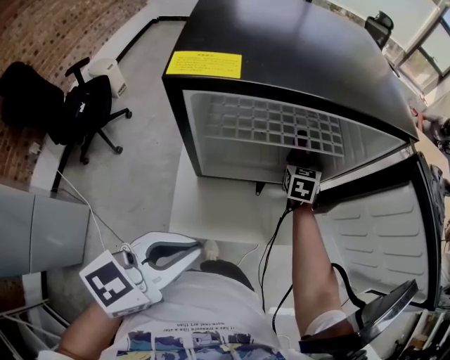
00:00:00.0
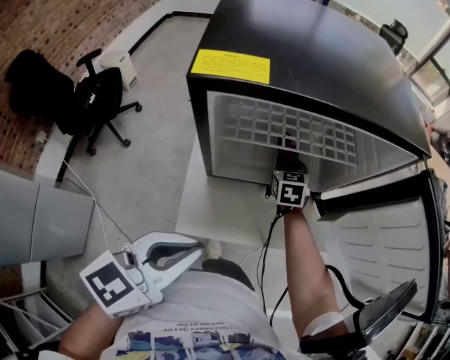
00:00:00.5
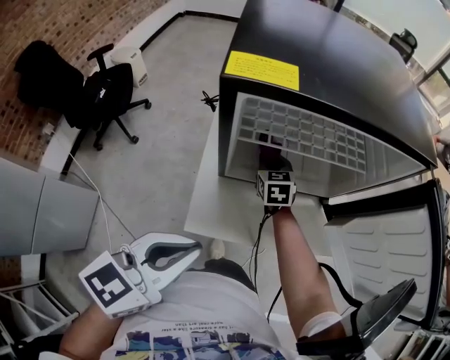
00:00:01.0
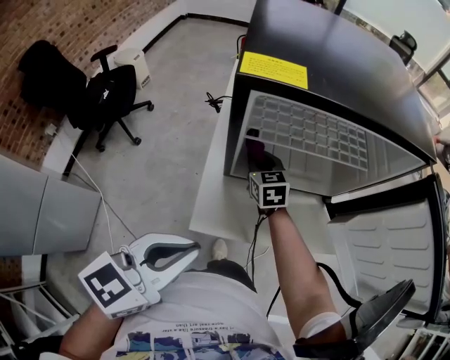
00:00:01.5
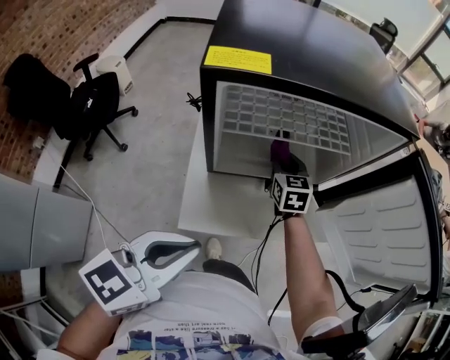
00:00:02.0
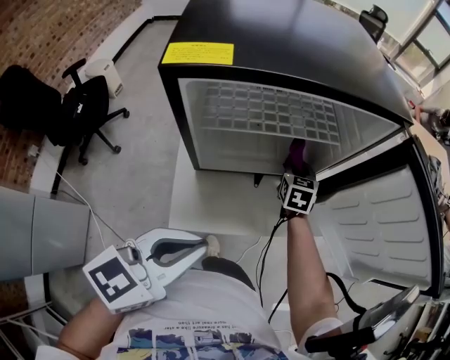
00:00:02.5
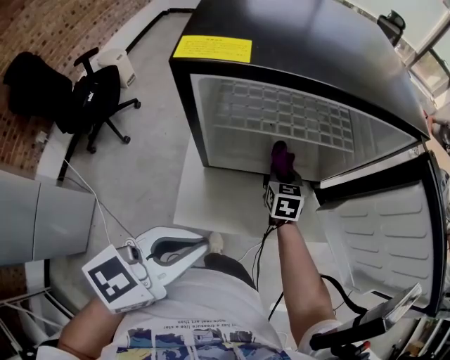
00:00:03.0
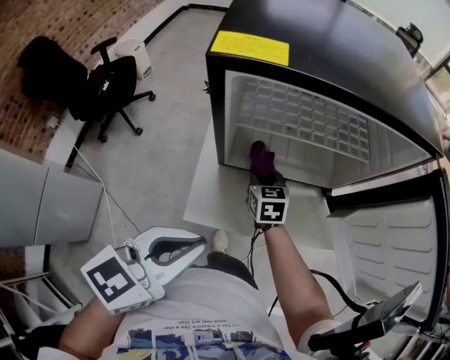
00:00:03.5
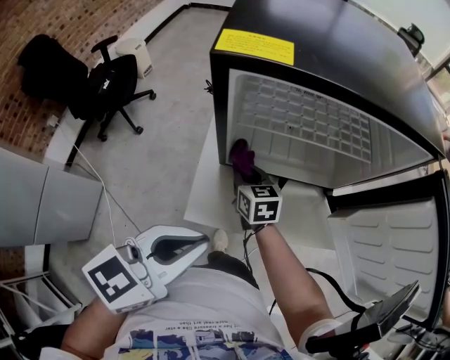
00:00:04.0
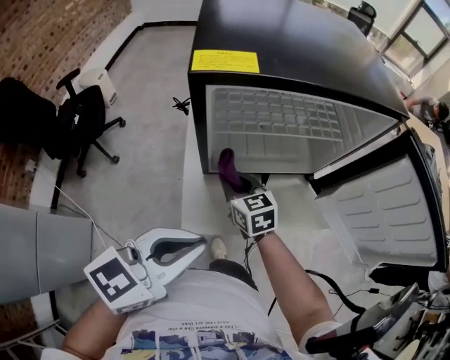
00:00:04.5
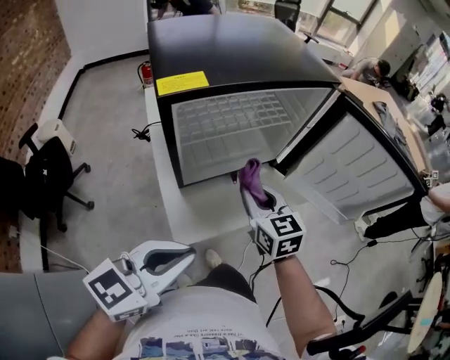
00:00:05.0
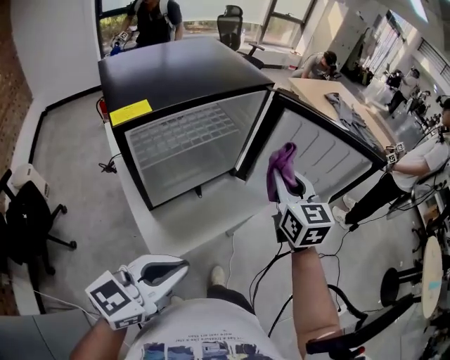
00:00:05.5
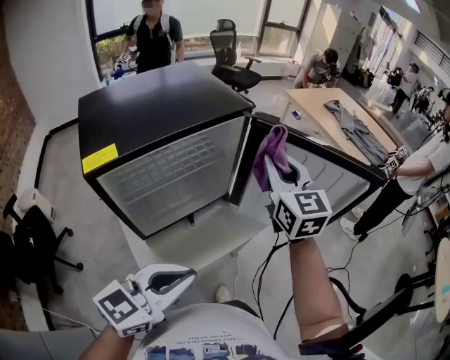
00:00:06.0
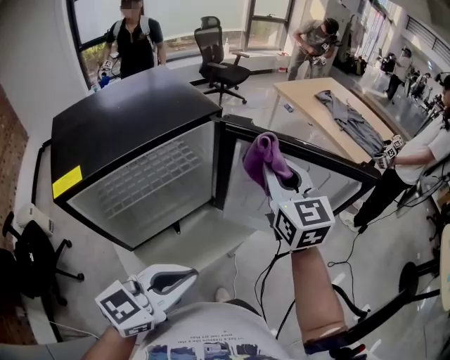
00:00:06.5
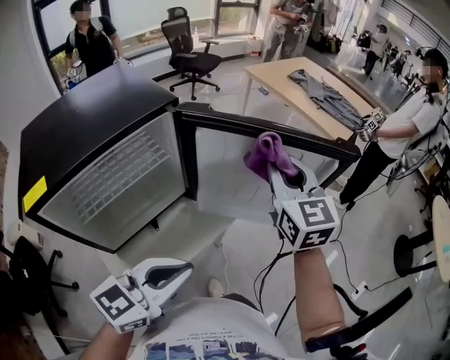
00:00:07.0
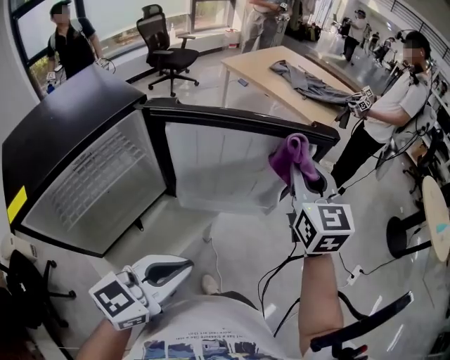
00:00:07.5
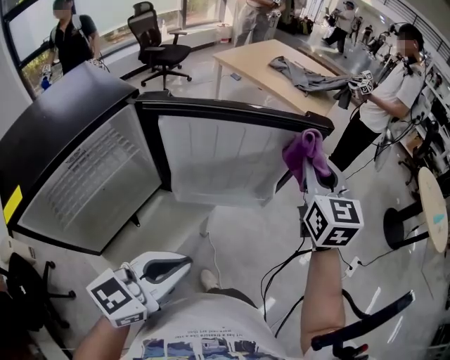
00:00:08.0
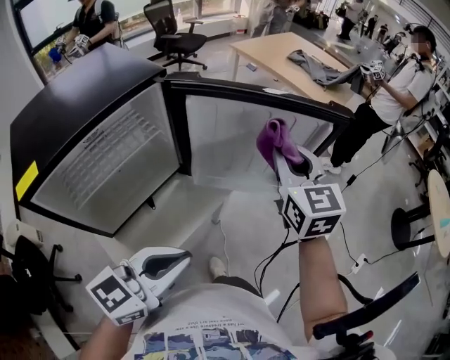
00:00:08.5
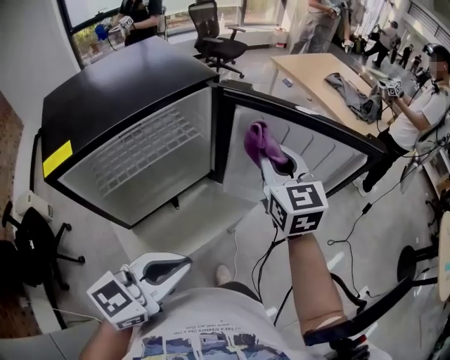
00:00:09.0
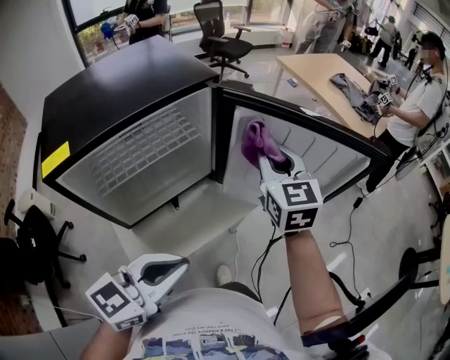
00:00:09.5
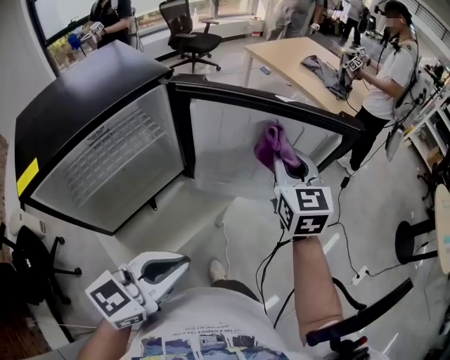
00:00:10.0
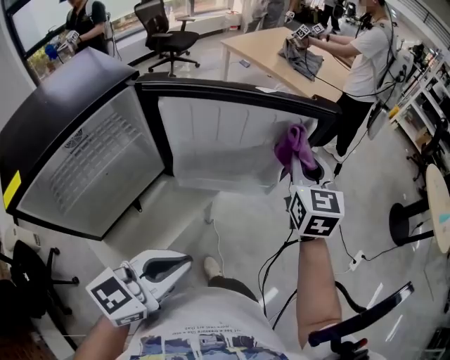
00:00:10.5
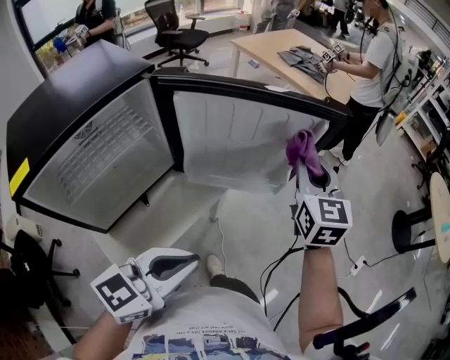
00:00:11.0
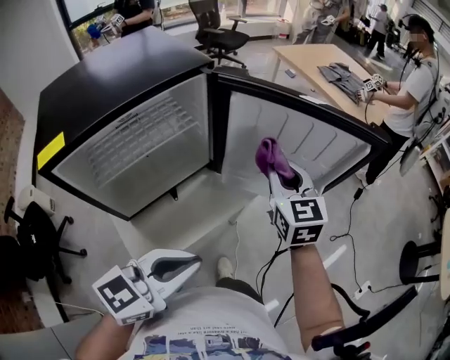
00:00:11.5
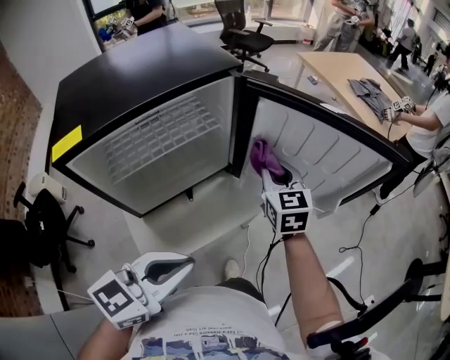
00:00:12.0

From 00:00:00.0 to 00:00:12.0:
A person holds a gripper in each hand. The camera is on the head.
From 00:00:00.0 to 00:00:02.0: The right gripper heads to the left and backward, covering approximately 10 cm.
From 00:00:02.0 to 00:00:04.0: The right gripper moves about 15 cm, and swivels about 20 degrees.
From 00:00:04.0 to 00:00:06.0: The right gripper ends up approximately 50 cm from where it was, and swivels some 60 degrees, while the left gripper ends up some 10 cm from where it was, and changes its angle by about 40 degrees.
From 00:00:06.0 to 00:00:08.0: The left gripper ends up roughly 15 cm from where it was, and swivels approximately 20 degrees, while the right gripper moves approximately 30 cm, and swivels roughly 30 degrees.
From 00:00:08.0 to 00:00:10.0: The right gripper is displaced to the left and downward by about 15 cm.
From 00:00:10.0 to 00:00:12.0: The right gripper shifts by approximately 15 cm; the left gripper ends up about 5 cm from where it was.

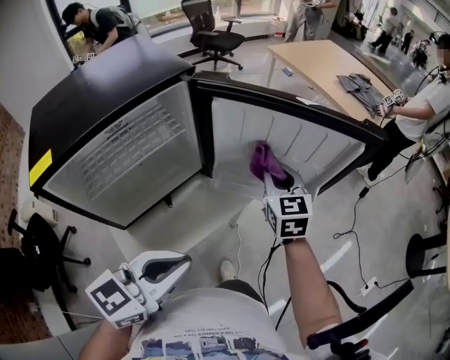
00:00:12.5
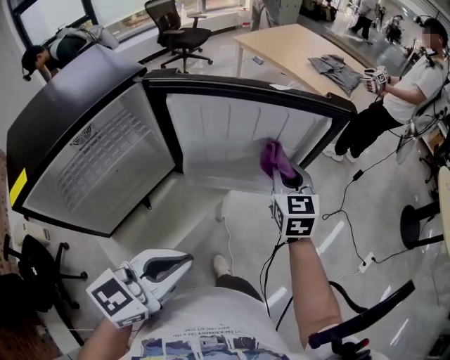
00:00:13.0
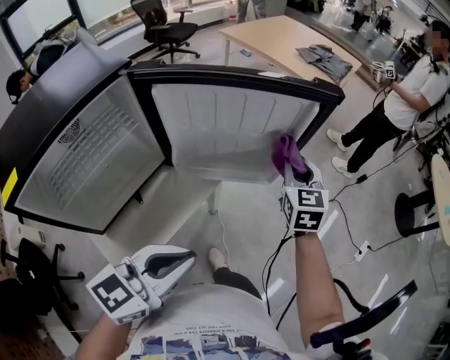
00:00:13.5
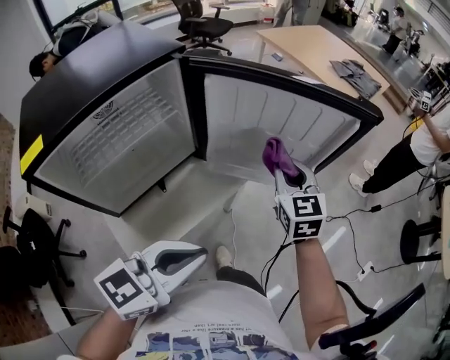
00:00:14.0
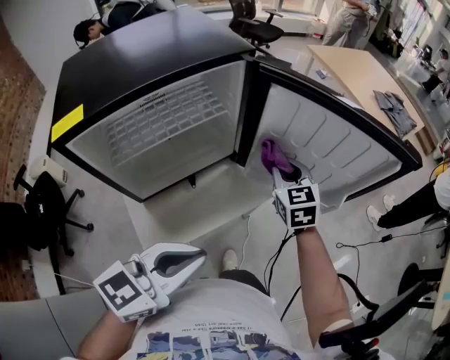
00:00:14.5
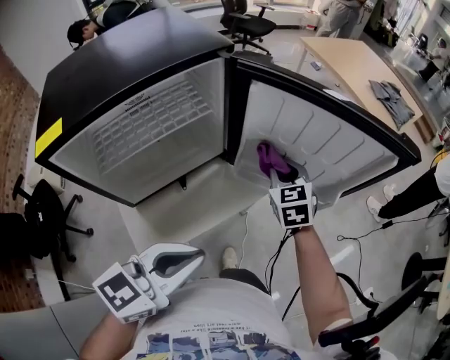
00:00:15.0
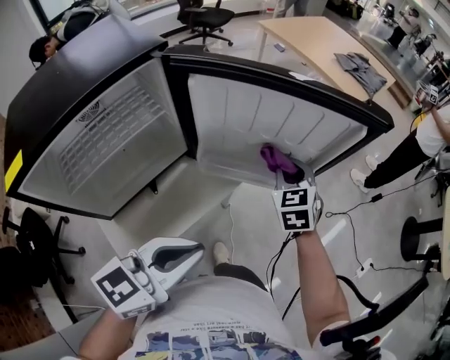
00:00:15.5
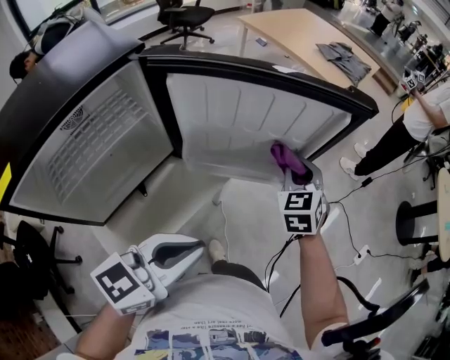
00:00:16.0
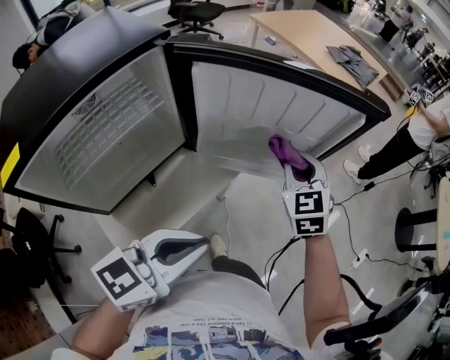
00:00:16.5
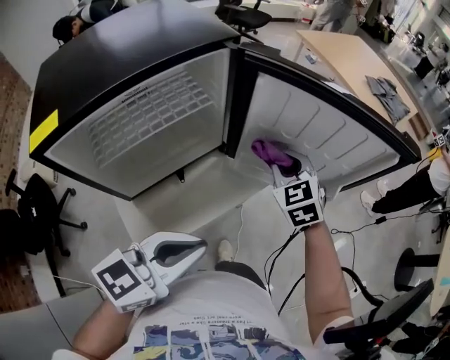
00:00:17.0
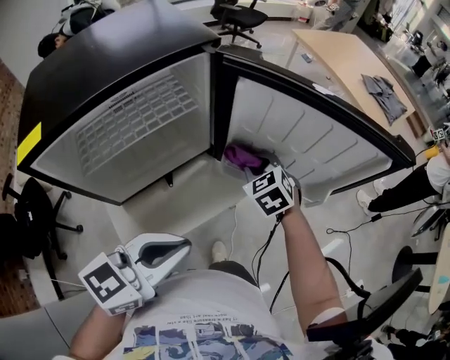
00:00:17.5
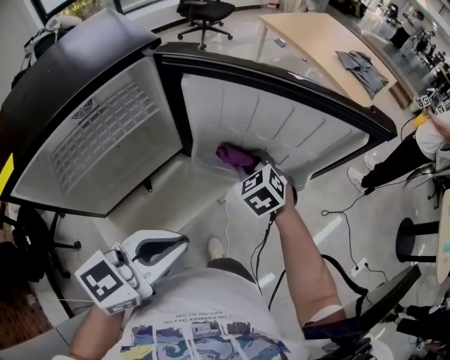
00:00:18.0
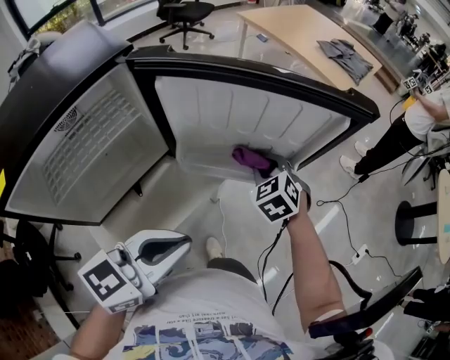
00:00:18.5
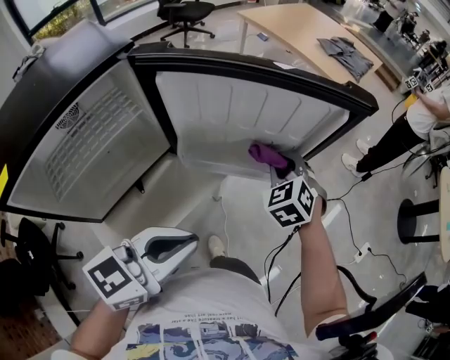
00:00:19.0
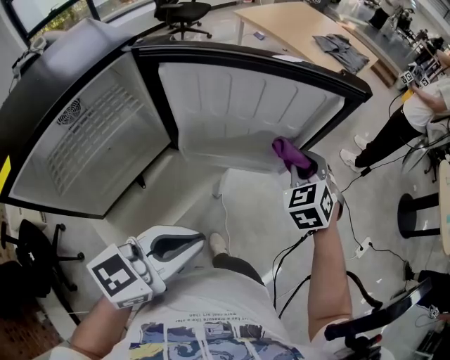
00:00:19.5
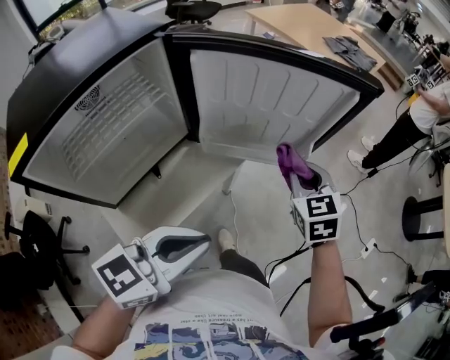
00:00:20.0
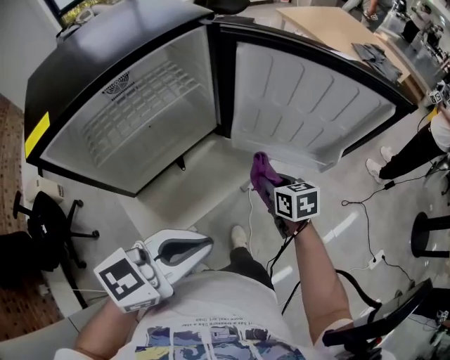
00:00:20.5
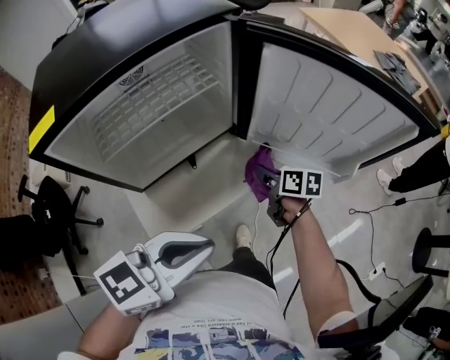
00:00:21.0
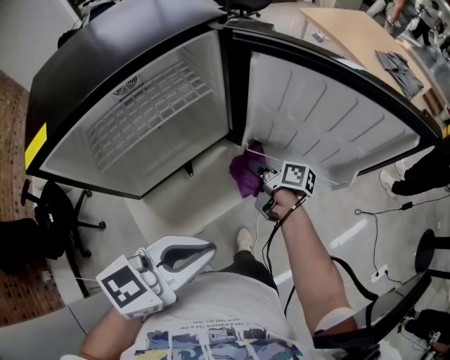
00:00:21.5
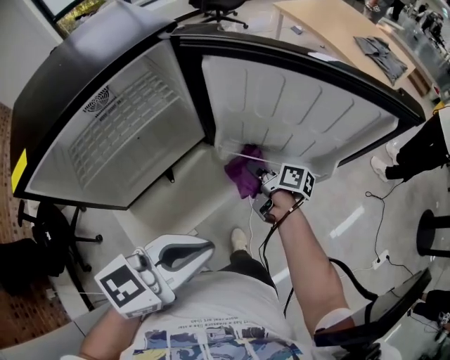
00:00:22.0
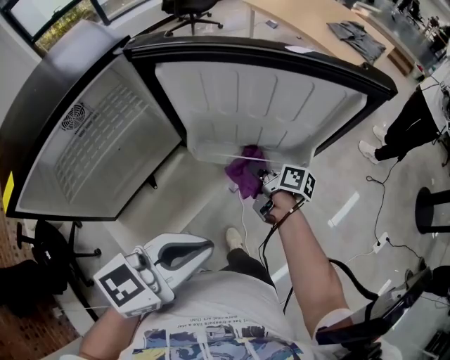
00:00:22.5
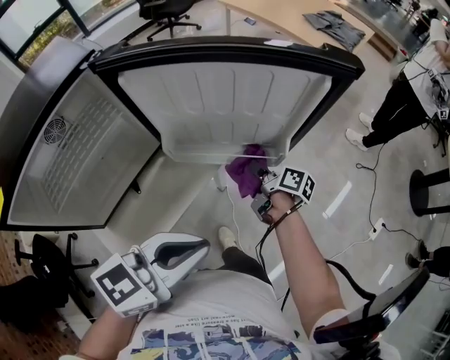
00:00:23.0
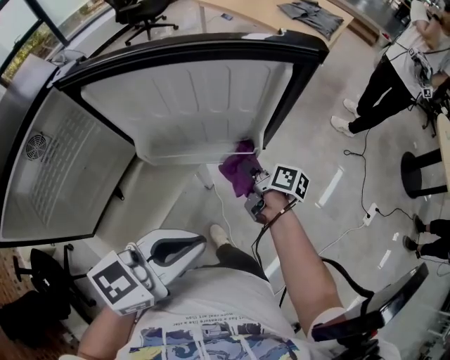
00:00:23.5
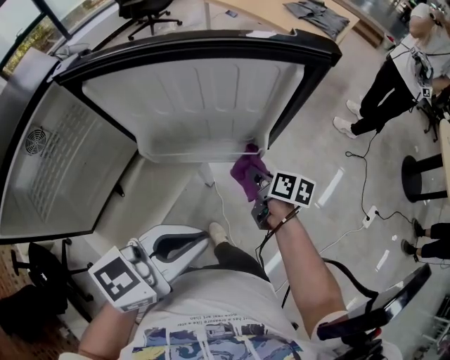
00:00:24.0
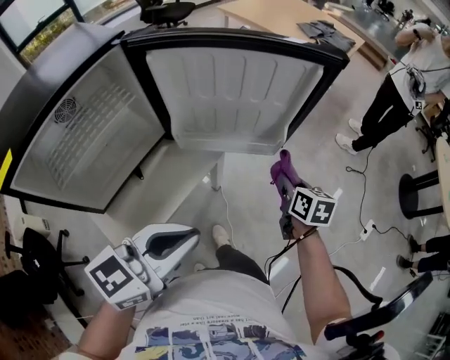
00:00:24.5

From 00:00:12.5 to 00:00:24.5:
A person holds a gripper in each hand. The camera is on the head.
From 00:00:14.5 to 00:00:16.5: The right gripper ends up about 15 cm from where it was, and rotates some 20 degrees. The left gripper moves some 10 cm.
From 00:00:16.5 to 00:00:18.5: The right gripper travels downward by roughly 10 cm, moves some 15 cm to the left and comes back, and rotates some 20 degrees.
From 00:00:18.5 to 00:00:20.5: The right gripper moves about 15 cm, and rotates approximately 40 degrees, while the left gripper ends up approximately 10 cm from where it was.
From 00:00:20.5 to 00:00:22.5: The right gripper heads forward, covering approximately 5 cm, and twists about 50 degrees clockwise, seen from behind; the left gripper goes roughly 5 cm to the right.
From 00:00:22.5 to 00:00:24.5: The right gripper moves to the right, some 15 cm, and changes its angle by some 50 degrees.

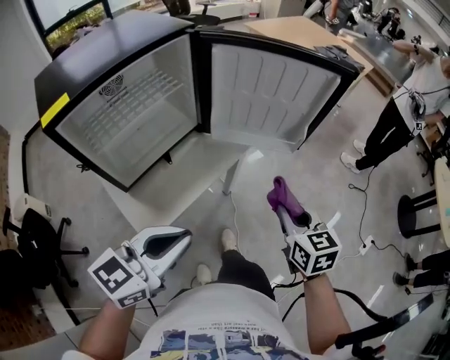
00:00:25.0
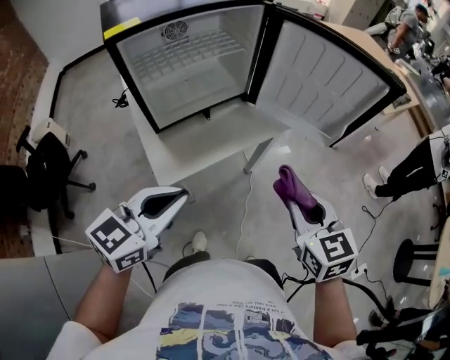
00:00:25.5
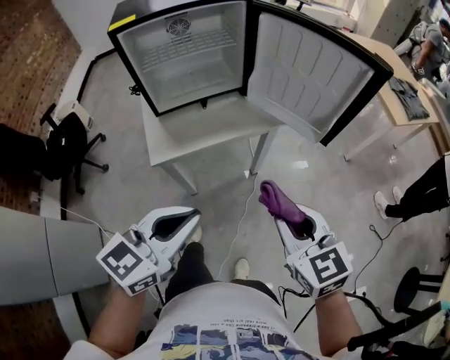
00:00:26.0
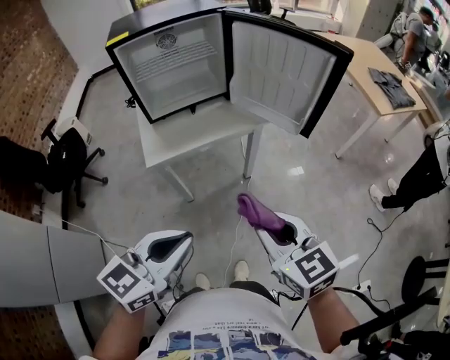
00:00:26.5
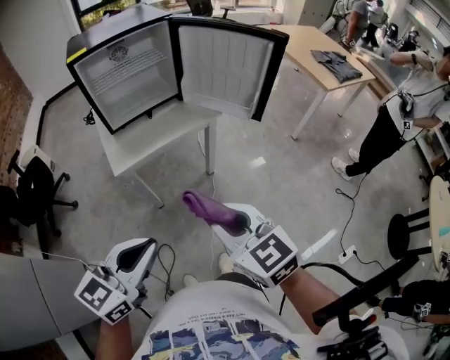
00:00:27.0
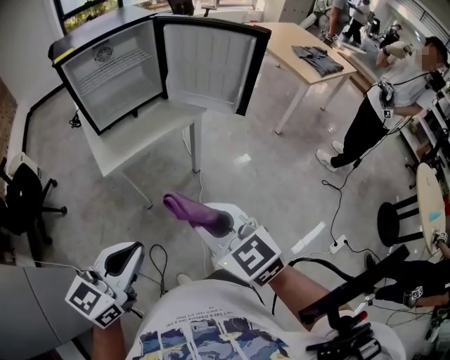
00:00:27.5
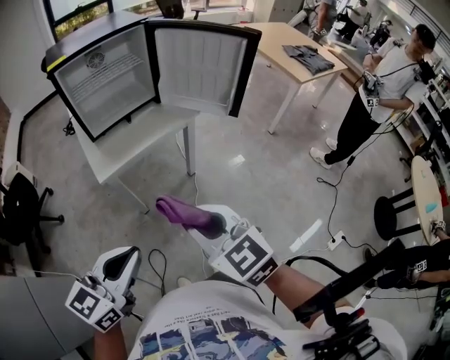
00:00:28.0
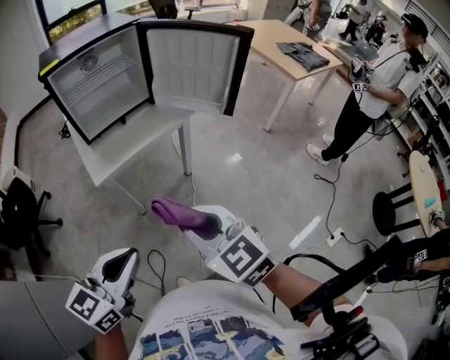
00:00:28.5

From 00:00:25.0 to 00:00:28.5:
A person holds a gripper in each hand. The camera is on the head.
From 00:00:25.0 to 00:00:27.0: The left gripper moves approximately 25 cm, and rotates about 30 degrees, while the right gripper moves approximately 25 cm, and swivels some 50 degrees.
From 00:00:27.0 to 00:00:28.5: The grippers move only a little.
